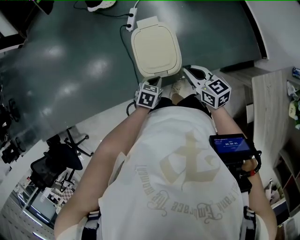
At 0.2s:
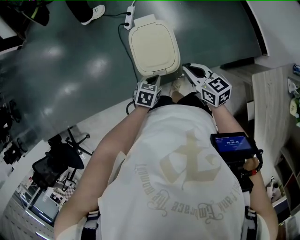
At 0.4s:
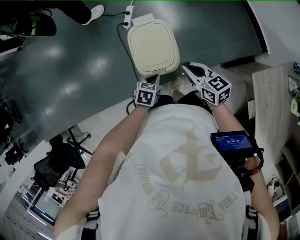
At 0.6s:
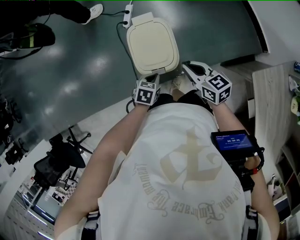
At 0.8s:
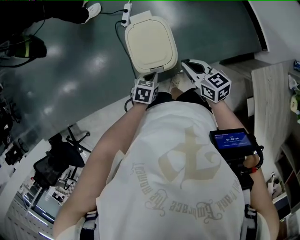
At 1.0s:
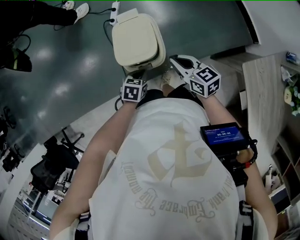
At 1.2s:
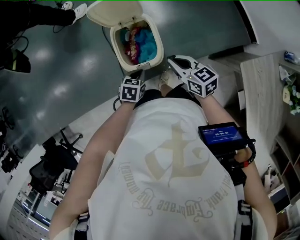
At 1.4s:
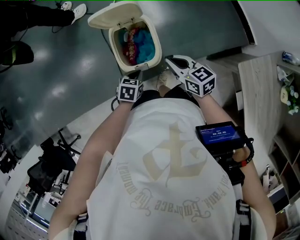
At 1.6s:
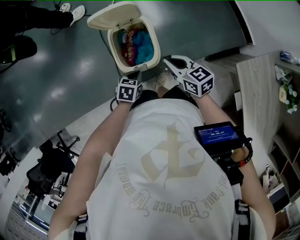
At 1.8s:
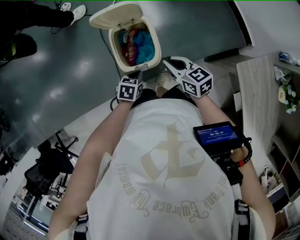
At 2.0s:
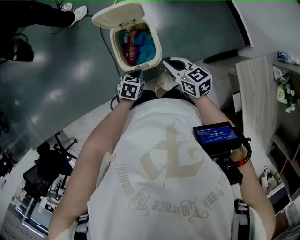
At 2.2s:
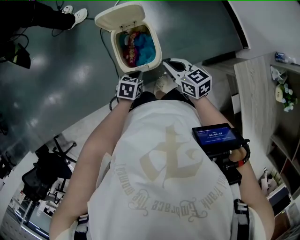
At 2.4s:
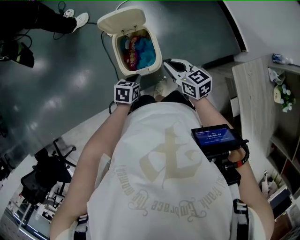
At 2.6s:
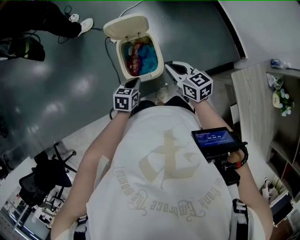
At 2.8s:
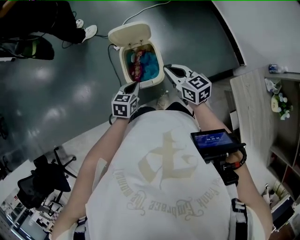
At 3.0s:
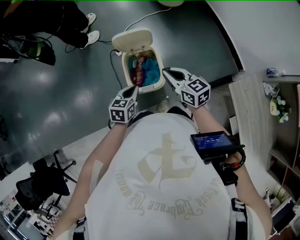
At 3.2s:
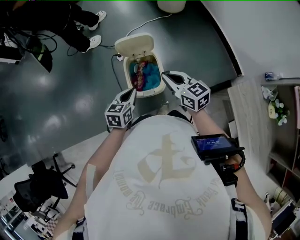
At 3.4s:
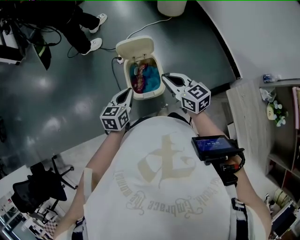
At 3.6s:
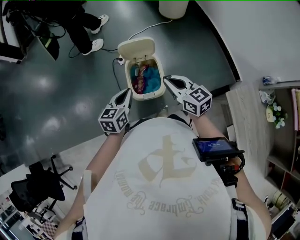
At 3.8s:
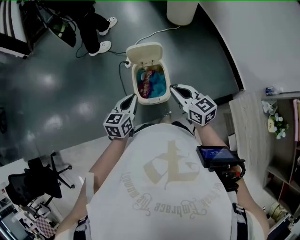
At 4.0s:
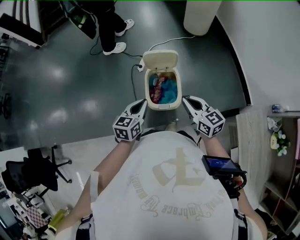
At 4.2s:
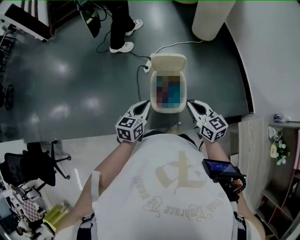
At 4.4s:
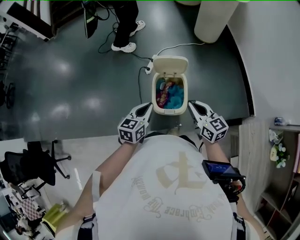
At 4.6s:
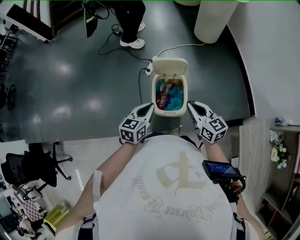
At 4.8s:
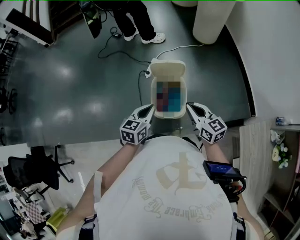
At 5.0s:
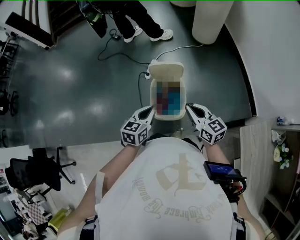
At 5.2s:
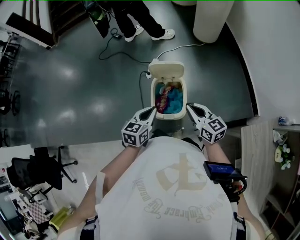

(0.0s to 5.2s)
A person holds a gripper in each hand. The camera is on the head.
0.0s - 1.8s: The grippers move only a little.
1.8s - 3.4s: Both grippers move upward, some 15 cm. The left gripper angles its fingers upward, by about 30 degrees.
3.4s - 5.2s: There are only small adjustments of the grippers.

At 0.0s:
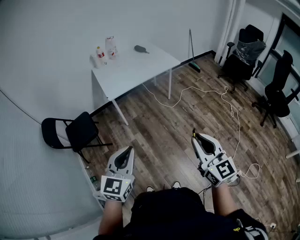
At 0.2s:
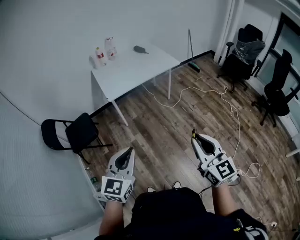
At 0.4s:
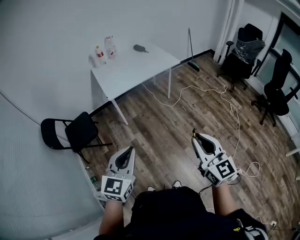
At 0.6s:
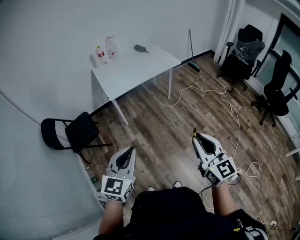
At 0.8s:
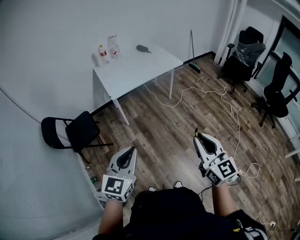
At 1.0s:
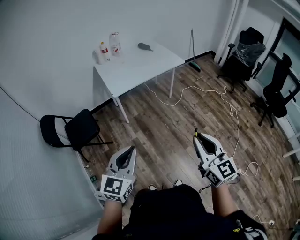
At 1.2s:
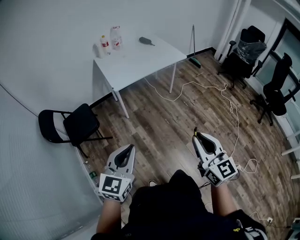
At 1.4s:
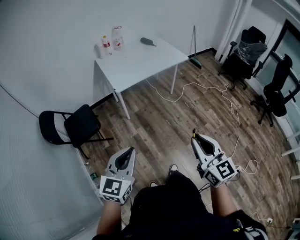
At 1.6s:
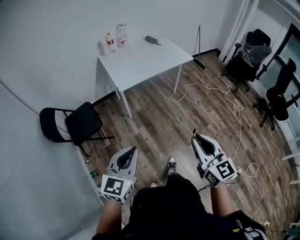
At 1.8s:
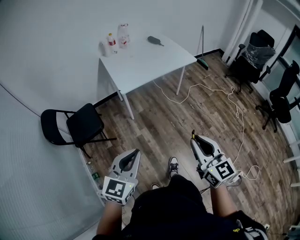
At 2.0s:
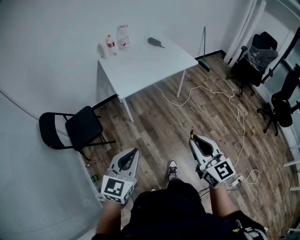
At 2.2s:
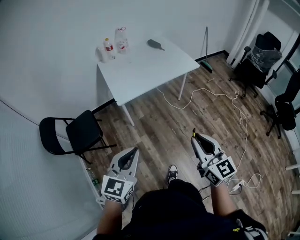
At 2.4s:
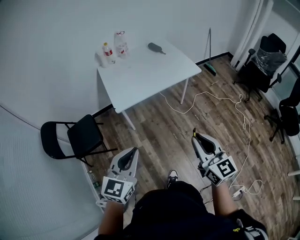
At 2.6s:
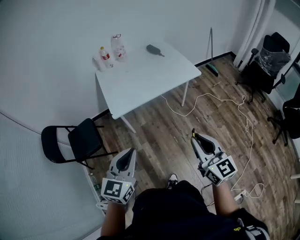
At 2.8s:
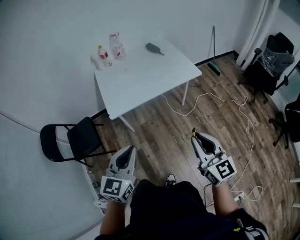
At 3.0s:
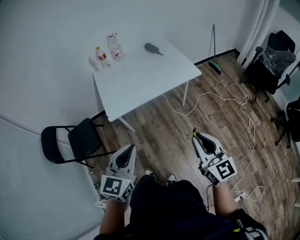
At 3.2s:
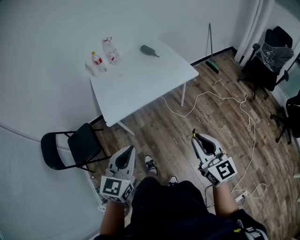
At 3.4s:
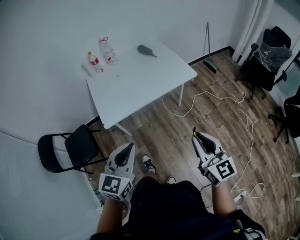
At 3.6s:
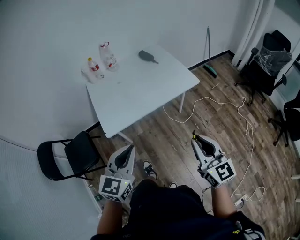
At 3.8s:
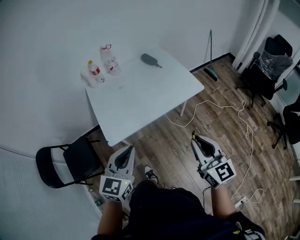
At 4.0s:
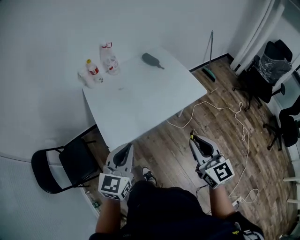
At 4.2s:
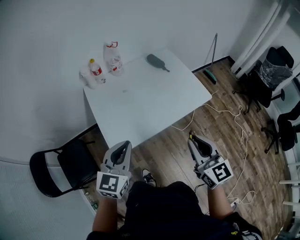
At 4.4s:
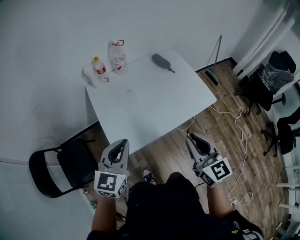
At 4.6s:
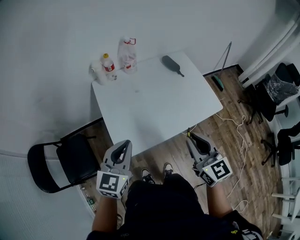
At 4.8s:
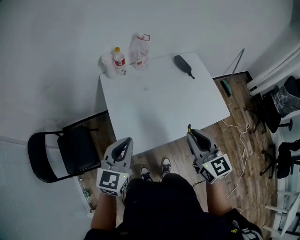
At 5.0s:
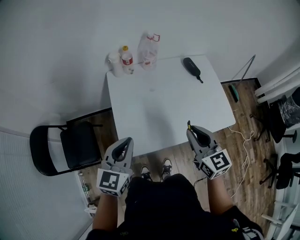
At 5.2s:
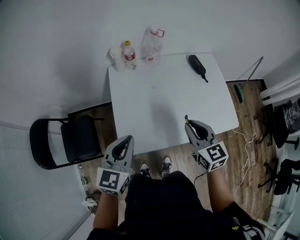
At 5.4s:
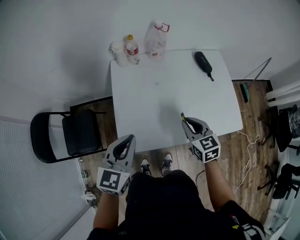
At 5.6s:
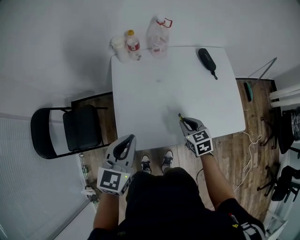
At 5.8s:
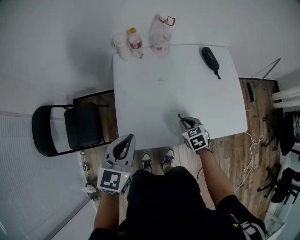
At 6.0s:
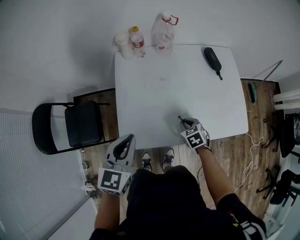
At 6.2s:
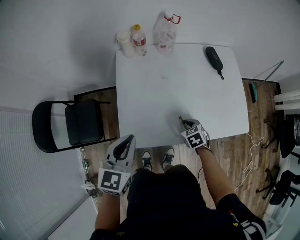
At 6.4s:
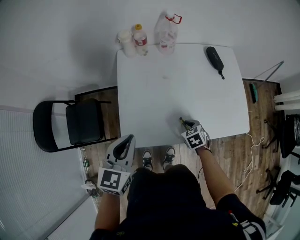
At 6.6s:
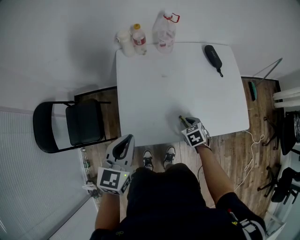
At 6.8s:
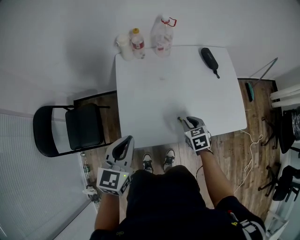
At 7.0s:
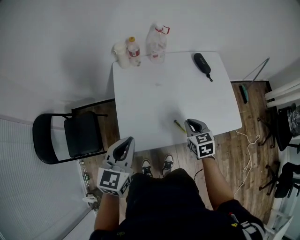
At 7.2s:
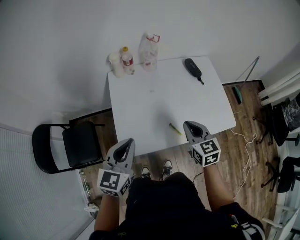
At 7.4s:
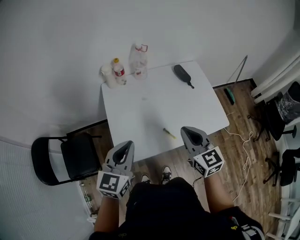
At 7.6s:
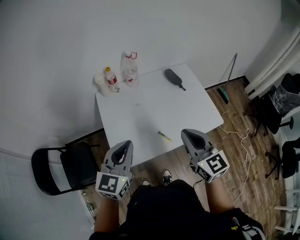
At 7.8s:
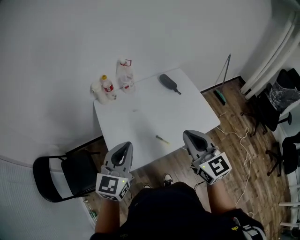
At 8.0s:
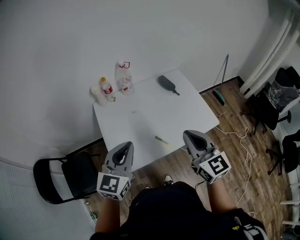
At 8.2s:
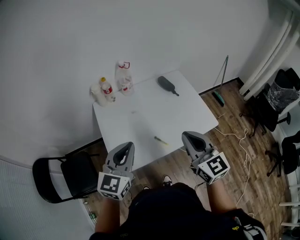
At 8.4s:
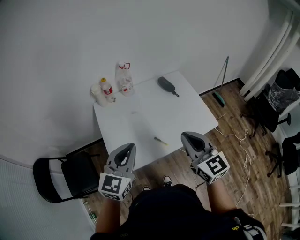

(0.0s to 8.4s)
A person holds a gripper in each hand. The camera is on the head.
0.0s - 1.4s: The grippers both shift to the left by roughly 10 cm.
1.4s - 2.8s: The right gripper is displaced forward by about 35 cm, while the left gripper is displaced forward and to the right by roughly 35 cm.
2.8s - 4.2s: The left gripper heads forward, covering about 30 cm; the right gripper moves forward and to the left, roughly 30 cm.
4.2s - 5.6s: The right gripper moves forward and downward, roughly 35 cm, and angles its fingers downward, by roughly 40 degrees; the left gripper shifts about 15 cm forward and downward, and turns by approximately 20 degrees.
5.6s - 7.0s: The right gripper moves some 10 cm downward and comes back.
7.0s - 8.4s: The left gripper goes about 15 cm upward and to the right, and swivels some 20 degrees. The right gripper heads upward and backward, covering roughly 25 cm, and points its fingers approximately 30 degrees further upward.

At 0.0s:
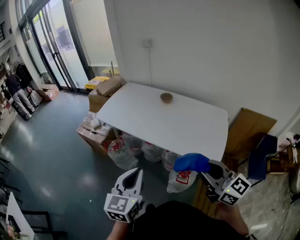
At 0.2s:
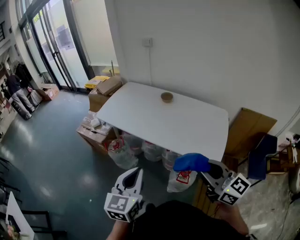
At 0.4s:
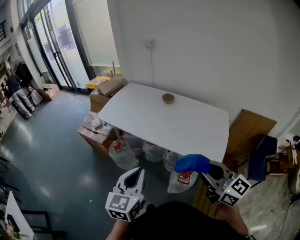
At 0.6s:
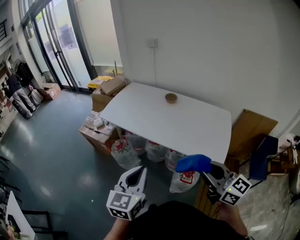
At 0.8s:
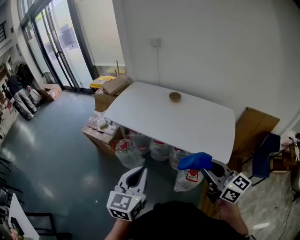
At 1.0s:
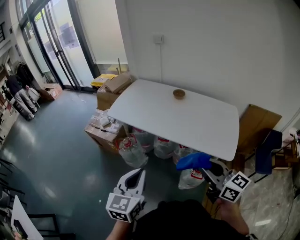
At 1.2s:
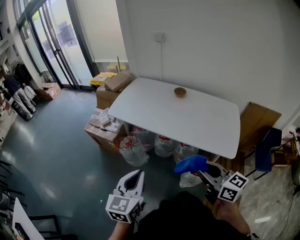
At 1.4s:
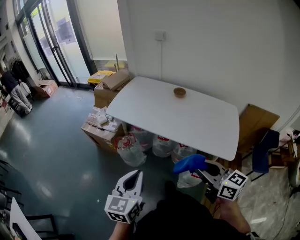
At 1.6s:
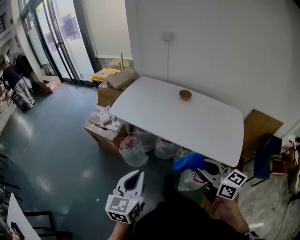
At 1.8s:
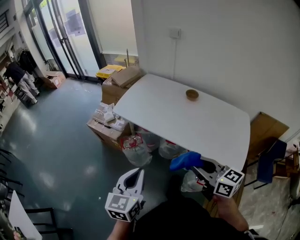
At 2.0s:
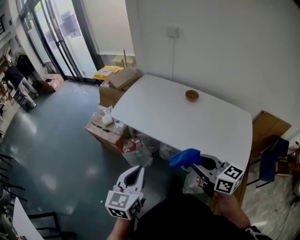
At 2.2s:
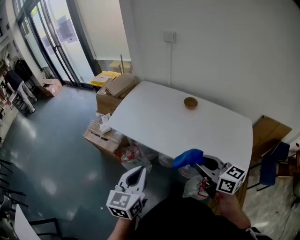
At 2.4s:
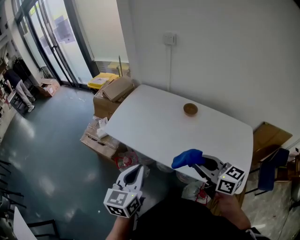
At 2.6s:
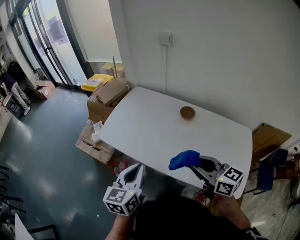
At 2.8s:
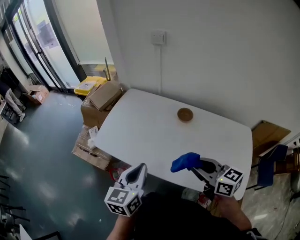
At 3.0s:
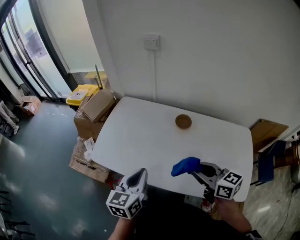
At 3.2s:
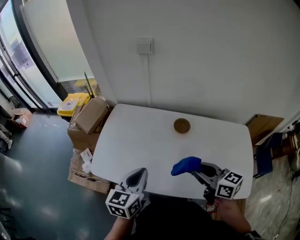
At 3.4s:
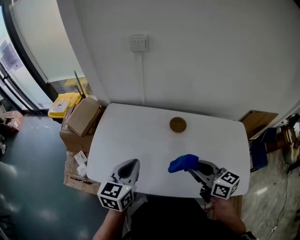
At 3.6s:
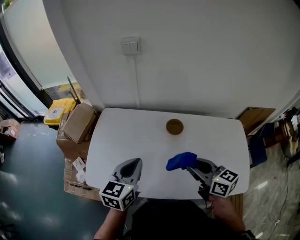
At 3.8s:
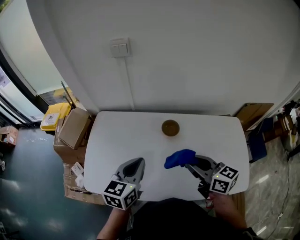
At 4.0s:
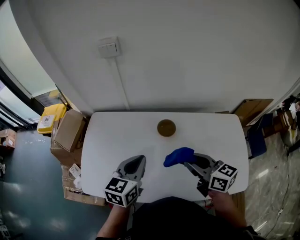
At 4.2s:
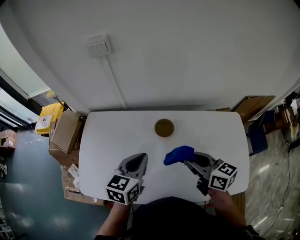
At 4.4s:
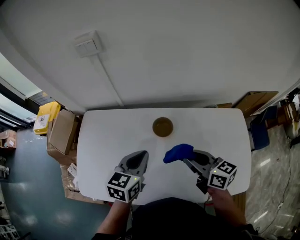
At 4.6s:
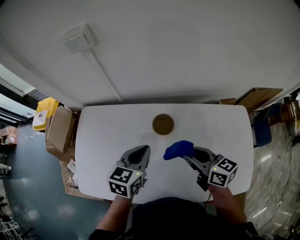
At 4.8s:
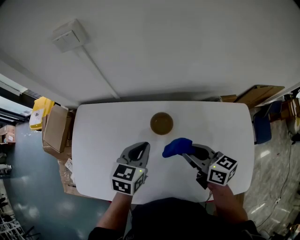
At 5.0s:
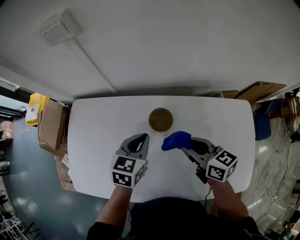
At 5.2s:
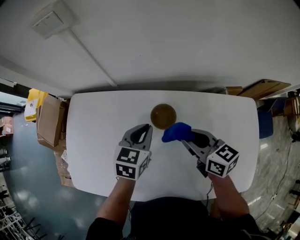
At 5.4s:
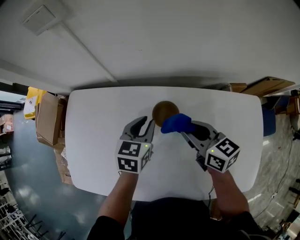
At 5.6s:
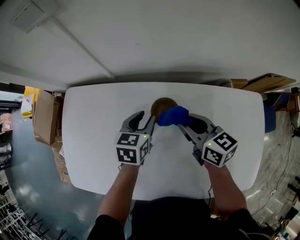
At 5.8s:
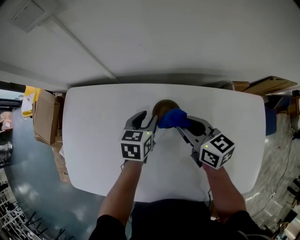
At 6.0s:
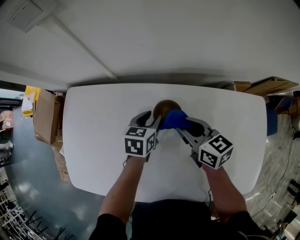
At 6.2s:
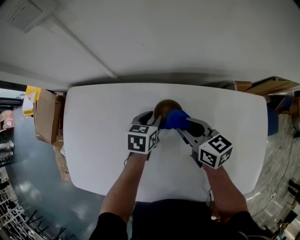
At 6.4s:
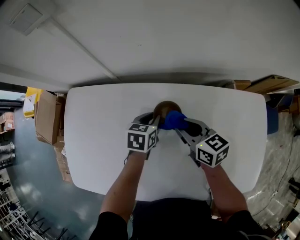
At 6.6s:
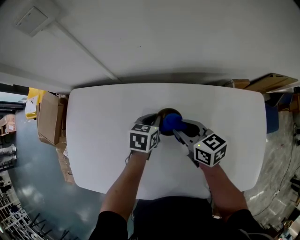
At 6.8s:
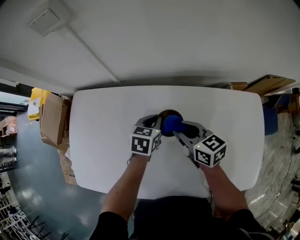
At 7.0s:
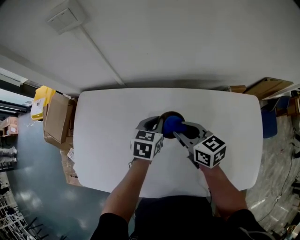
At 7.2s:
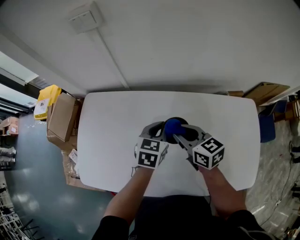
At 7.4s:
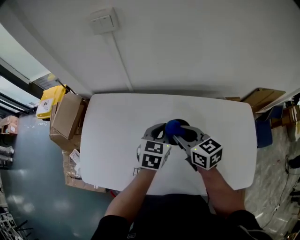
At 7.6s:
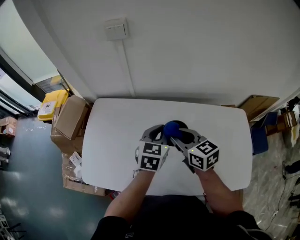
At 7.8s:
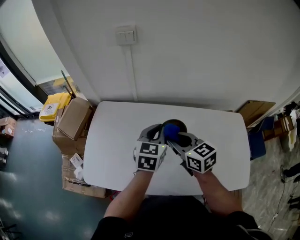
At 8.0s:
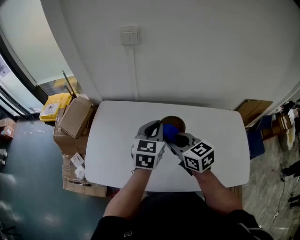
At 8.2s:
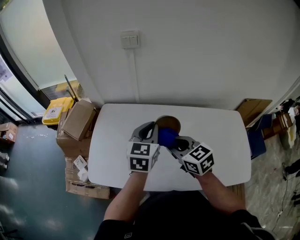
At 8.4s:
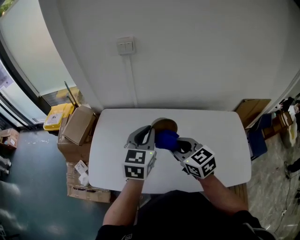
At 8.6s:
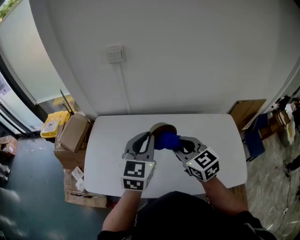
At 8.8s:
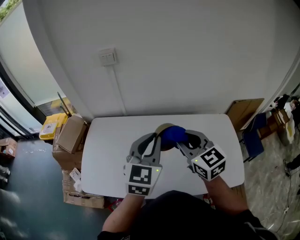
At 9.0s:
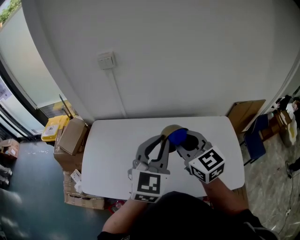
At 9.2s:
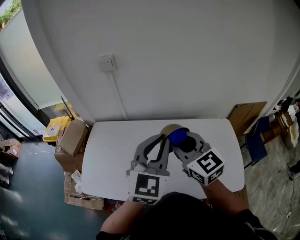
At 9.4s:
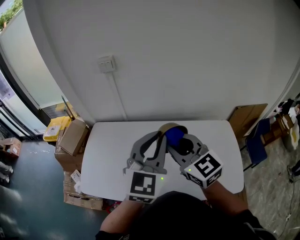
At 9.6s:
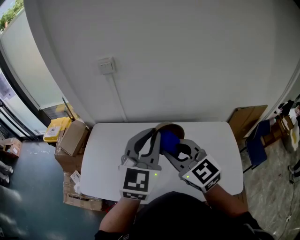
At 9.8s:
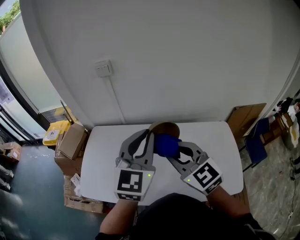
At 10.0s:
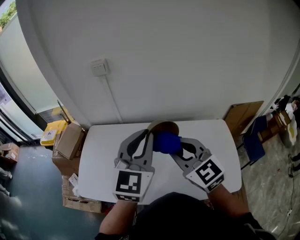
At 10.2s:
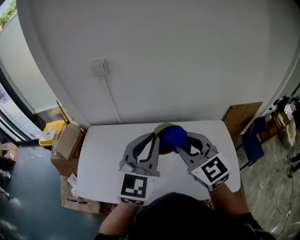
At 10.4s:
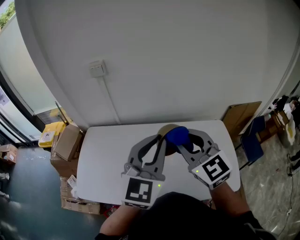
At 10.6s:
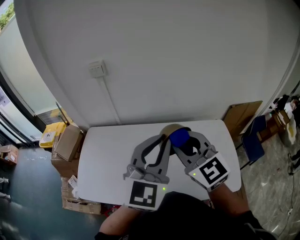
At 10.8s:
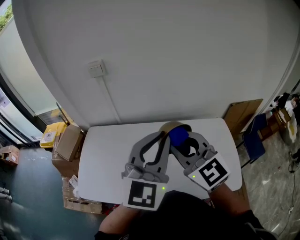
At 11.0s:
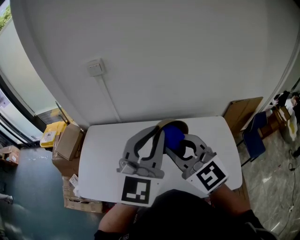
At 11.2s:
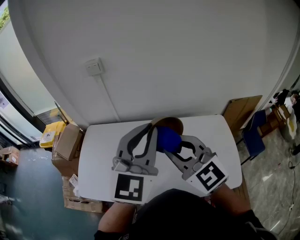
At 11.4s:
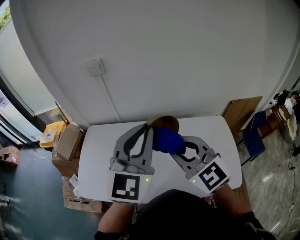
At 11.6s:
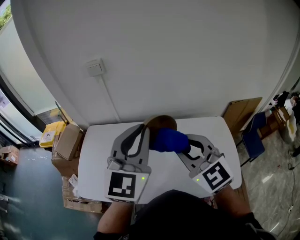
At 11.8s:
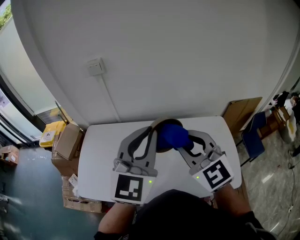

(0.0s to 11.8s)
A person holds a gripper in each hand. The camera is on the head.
0.0s - 1.4s: The left gripper travels to the left by roughly 15 cm, while the right gripper goes roughly 15 cm to the left and downward.
1.4s - 3.0s: The two grippers travel together, forward, roughly 40 cm.
3.0s - 4.4s: The right gripper moves forward, approximately 20 cm. Meanwhile the left gripper moves forward and to the right, about 25 cm, and turns by approximately 30 degrees.
4.4s - 6.0s: The right gripper heads forward and downward, covering some 20 cm. The left gripper is displaced downward and forward by some 25 cm, and opens up.
6.0s - 7.4s: The left gripper shifts about 20 cm upward and backward, and closes up. The right gripper heads upward, backward and to the left, covering some 15 cm.
7.4s - 8.8s: The grippers both shift upward and backward by roughly 25 cm. The right gripper swivels about 30 degrees. The left gripper turns by approximately 30 degrees.
8.8s - 10.4s: The left gripper shifts about 10 cm upward and to the right. Meanwhile the right gripper travels upward by some 5 cm.
10.4s - 11.8s: The grippers make only small movements.
